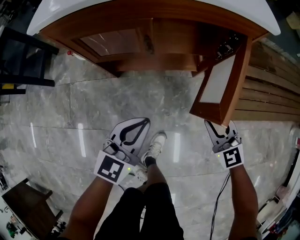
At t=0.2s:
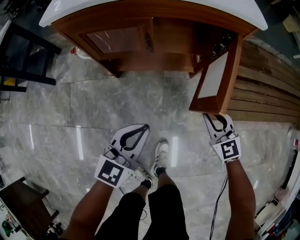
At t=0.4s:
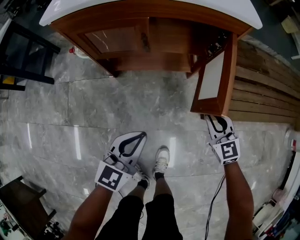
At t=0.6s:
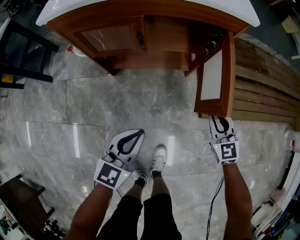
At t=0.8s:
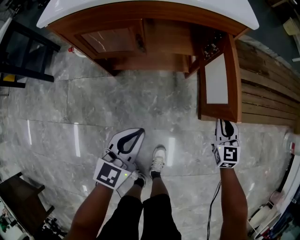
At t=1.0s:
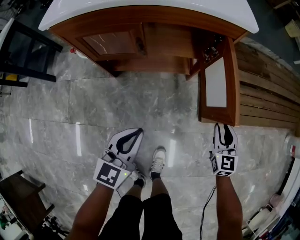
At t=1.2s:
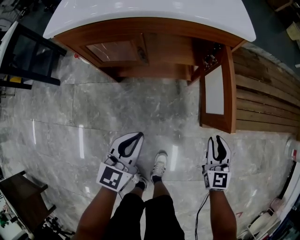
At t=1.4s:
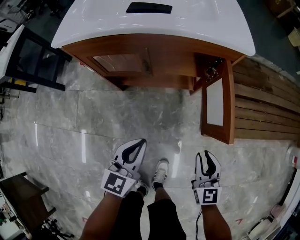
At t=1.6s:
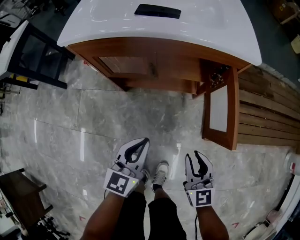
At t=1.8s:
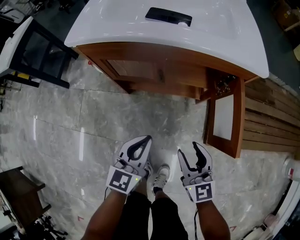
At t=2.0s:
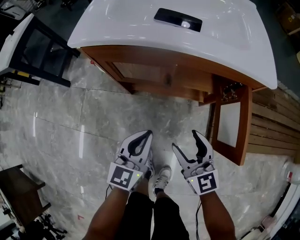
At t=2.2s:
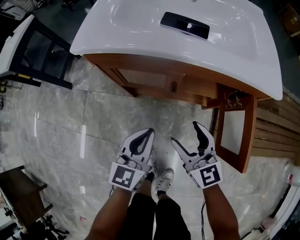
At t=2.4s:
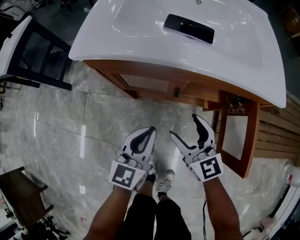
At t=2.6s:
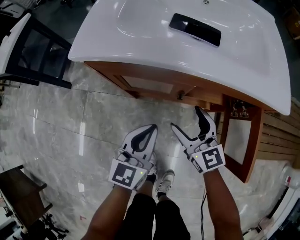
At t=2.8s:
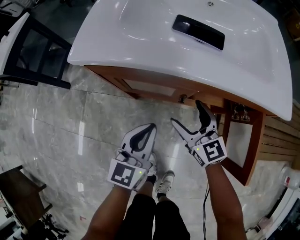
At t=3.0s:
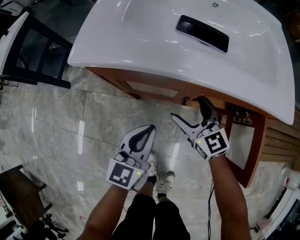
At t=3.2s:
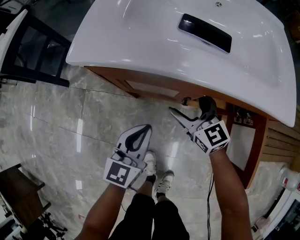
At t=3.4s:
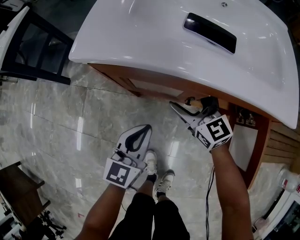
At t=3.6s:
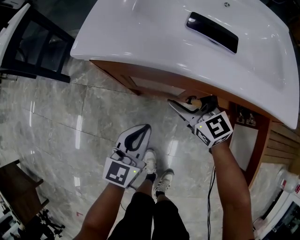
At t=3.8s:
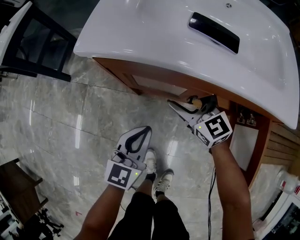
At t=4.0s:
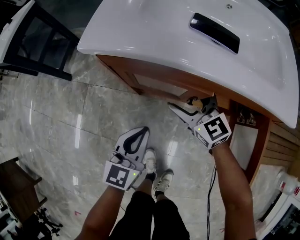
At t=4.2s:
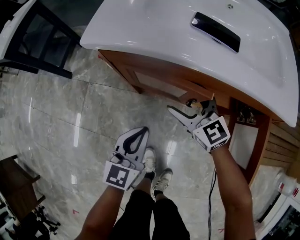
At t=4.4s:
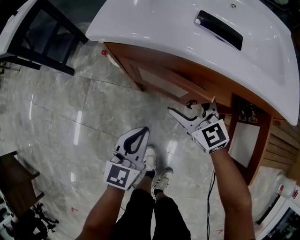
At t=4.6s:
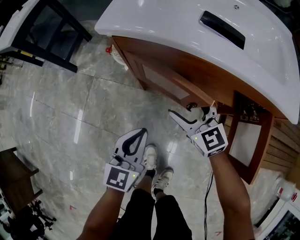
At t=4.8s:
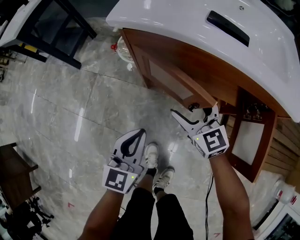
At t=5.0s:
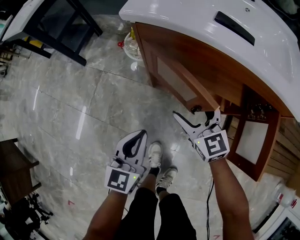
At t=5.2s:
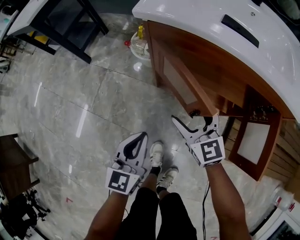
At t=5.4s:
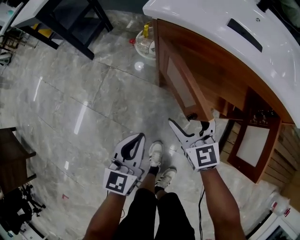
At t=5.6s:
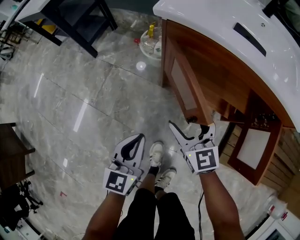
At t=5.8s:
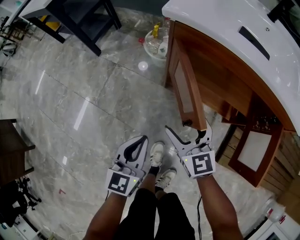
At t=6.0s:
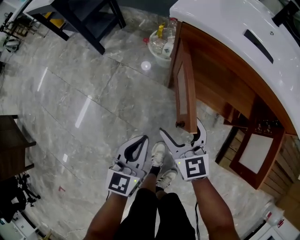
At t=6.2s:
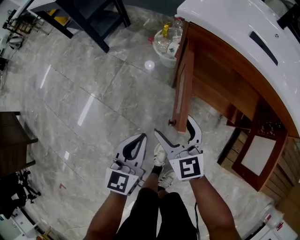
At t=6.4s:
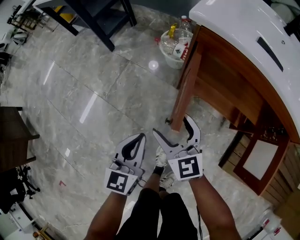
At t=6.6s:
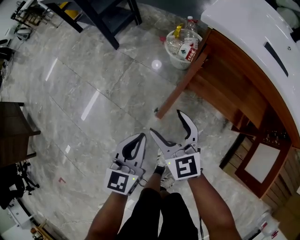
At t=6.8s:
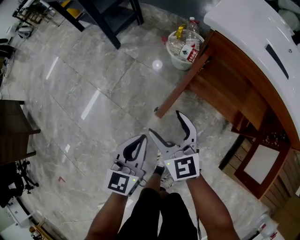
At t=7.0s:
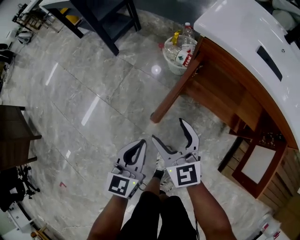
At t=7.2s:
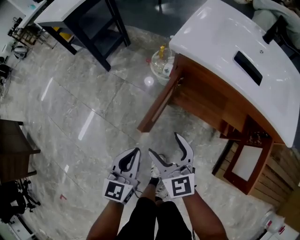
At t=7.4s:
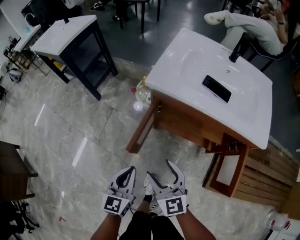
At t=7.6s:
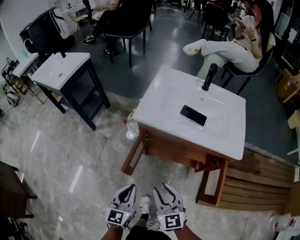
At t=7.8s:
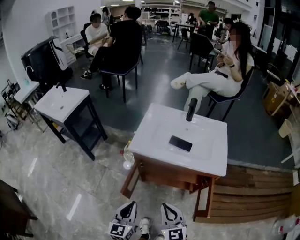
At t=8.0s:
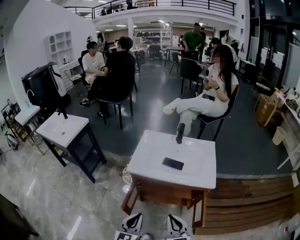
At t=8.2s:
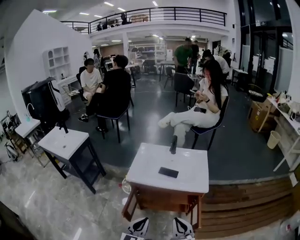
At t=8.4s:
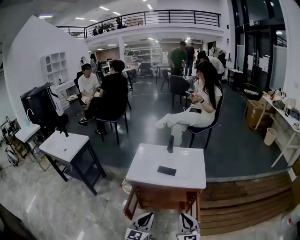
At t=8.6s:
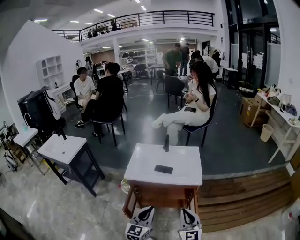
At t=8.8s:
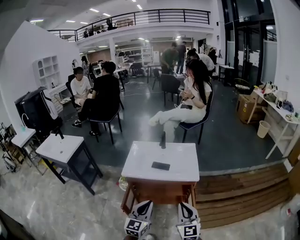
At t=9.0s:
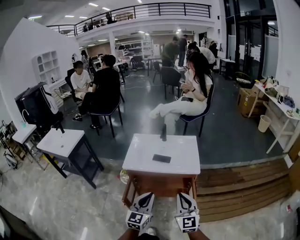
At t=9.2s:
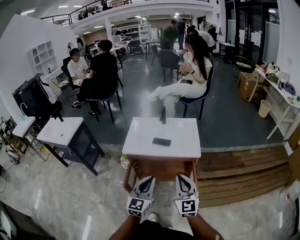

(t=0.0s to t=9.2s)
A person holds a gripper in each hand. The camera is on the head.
t=0.0s - t=1.6s: The left gripper moves about 10 cm backward and comes back, while the right gripper shifts some 10 cm upward and backward, goes to the right and returns, about 15 cm each way, and changes its angle by roughly 30 degrees.
t=1.6s - t=3.0s: The right gripper is displaced forward and to the left by about 35 cm, turns by roughly 20 degrees, and opens its fingers; the left gripper travels forward and to the left by roughly 20 cm.
t=3.0s - t=4.6s: The right gripper shifts some 5 cm to the left; the left gripper travels to the left and backward by roughly 10 cm.
t=4.6s - t=6.2s: The grippers both shift to the left and backward by some 20 cm.
t=6.2s - t=7.6s: The right gripper shifts about 20 cm upward and to the right, and closes up; the left gripper moves upward, approximately 15 cm.
t=7.6s - t=9.2s: The grippers both shift upward and to the right by approximately 30 cm. The right gripper swivels approximately 30 degrees. Meanwhile the left gripper turns by about 30 degrees.

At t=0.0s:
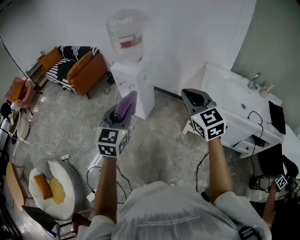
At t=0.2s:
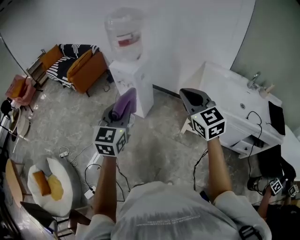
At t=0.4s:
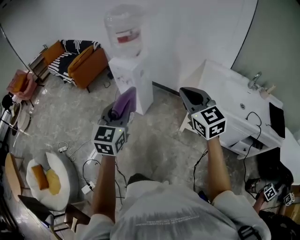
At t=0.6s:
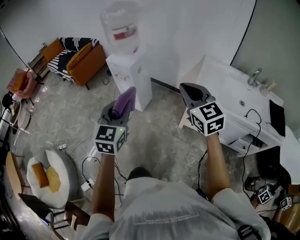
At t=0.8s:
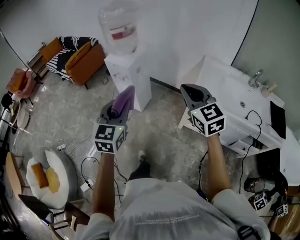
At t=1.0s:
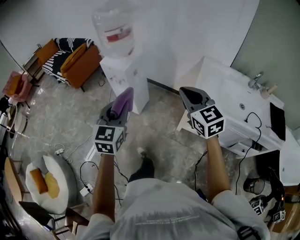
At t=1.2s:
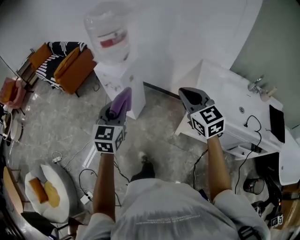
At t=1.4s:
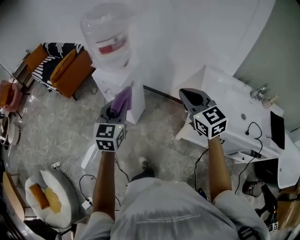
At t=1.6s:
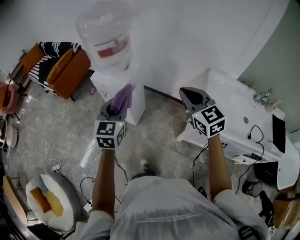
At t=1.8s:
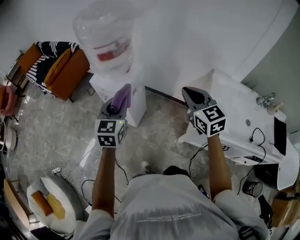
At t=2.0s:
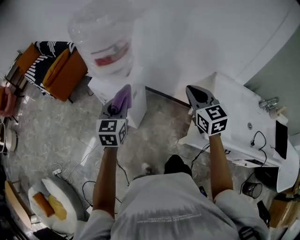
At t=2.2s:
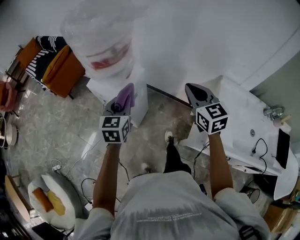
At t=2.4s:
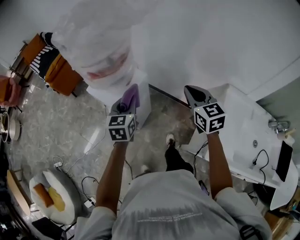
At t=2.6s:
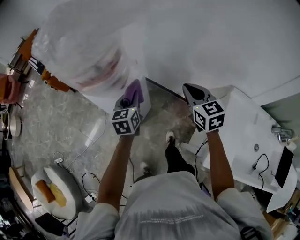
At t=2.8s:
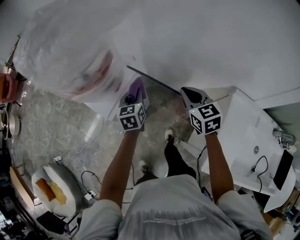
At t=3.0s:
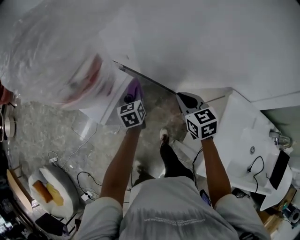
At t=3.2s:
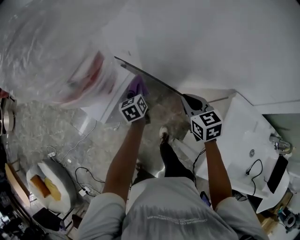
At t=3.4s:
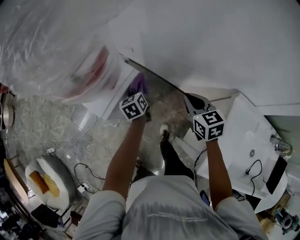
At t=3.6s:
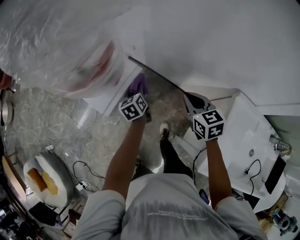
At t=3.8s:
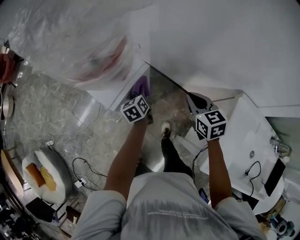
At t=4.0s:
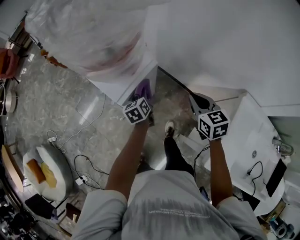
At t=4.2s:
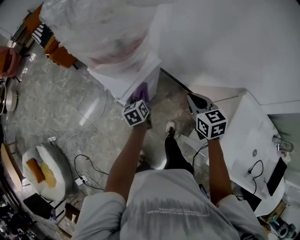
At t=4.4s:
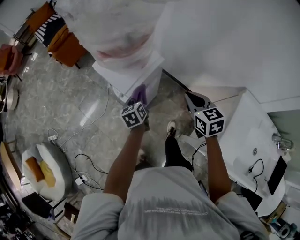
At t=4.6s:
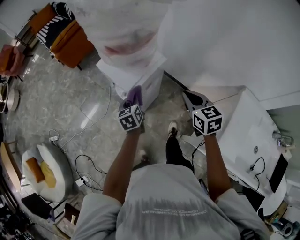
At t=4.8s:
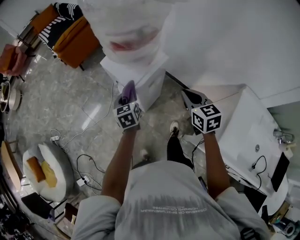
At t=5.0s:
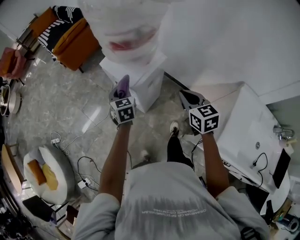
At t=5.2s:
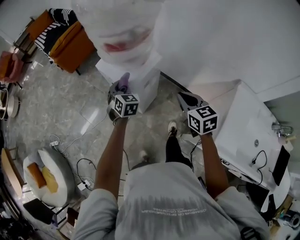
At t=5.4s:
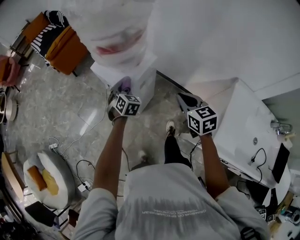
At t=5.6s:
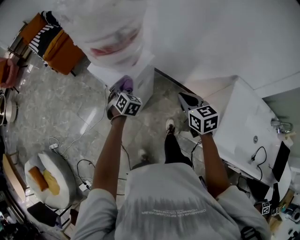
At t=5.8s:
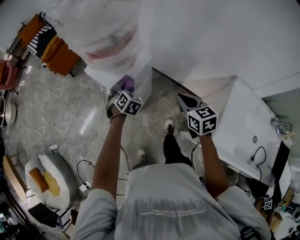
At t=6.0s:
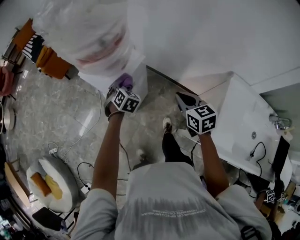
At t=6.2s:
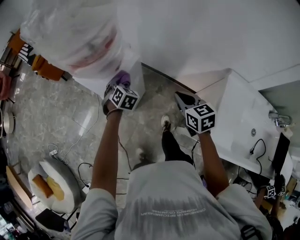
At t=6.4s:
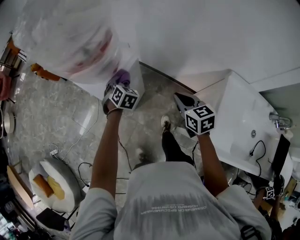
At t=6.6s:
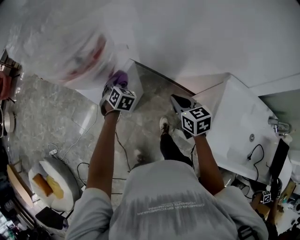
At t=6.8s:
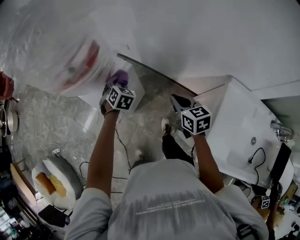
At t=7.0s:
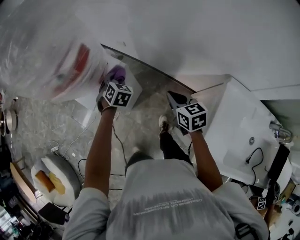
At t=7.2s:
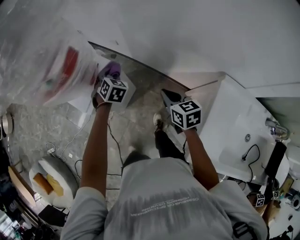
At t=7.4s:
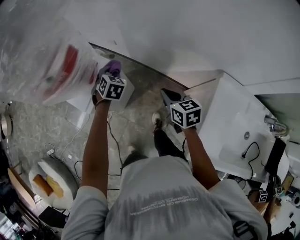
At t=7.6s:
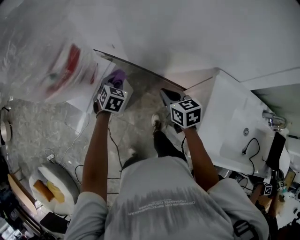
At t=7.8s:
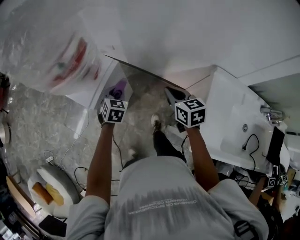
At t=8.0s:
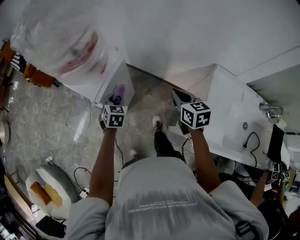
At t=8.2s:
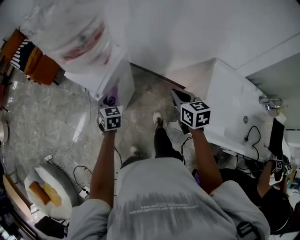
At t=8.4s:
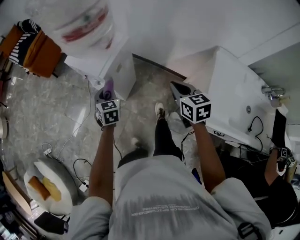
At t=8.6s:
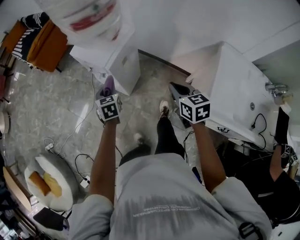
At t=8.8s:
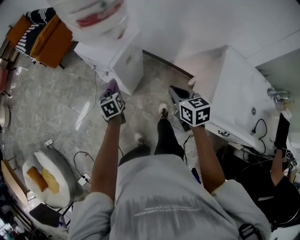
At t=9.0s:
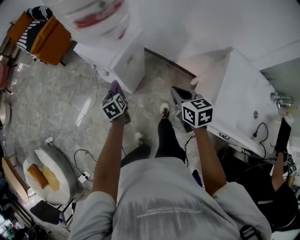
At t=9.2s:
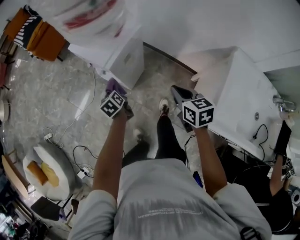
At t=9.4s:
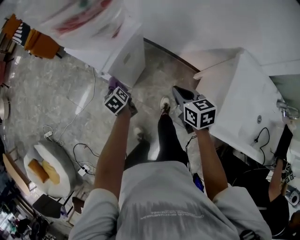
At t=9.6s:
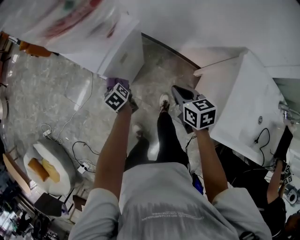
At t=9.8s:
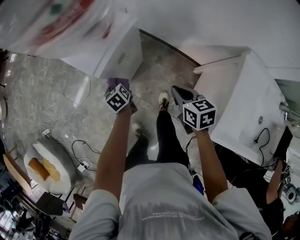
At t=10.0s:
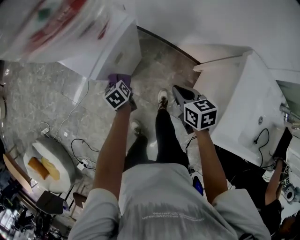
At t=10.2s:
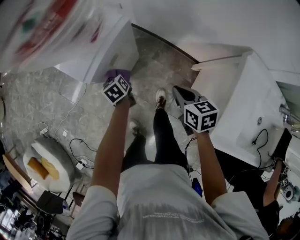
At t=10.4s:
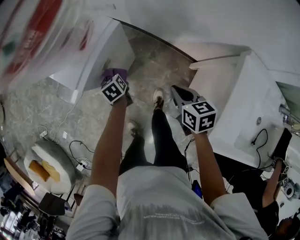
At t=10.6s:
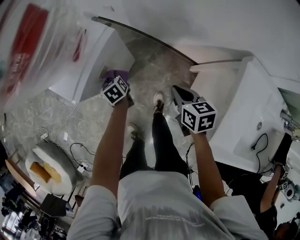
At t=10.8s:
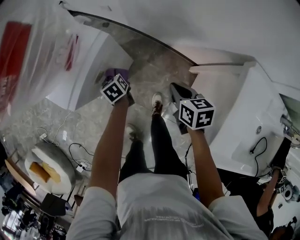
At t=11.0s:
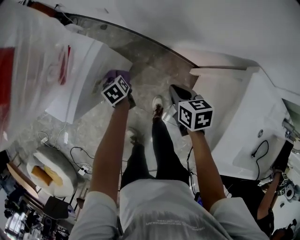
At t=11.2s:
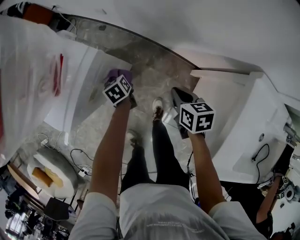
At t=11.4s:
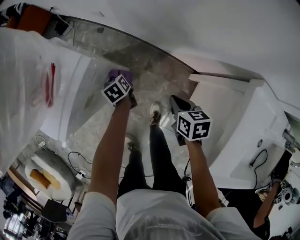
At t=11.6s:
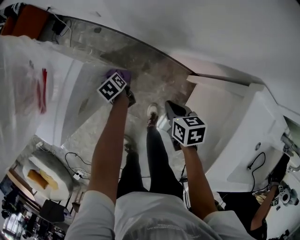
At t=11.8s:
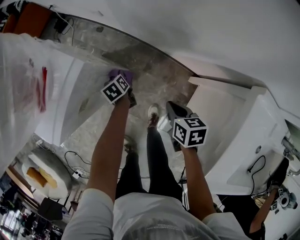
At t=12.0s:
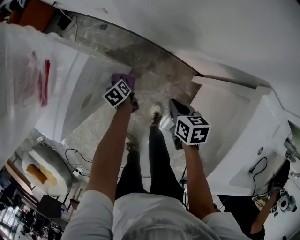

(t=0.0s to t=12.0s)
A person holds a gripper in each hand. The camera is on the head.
t=0.0s - t=1.6s: Both grippers move forward, some 30 cm.
t=1.6s - t=3.0s: Both grippers travel together forward and downward, some 40 cm. The left gripper turns by roughly 40 degrees. The right gripper turns by some 20 degrees.
t=3.0s - t=4.4s: The grippers both shift to the left and backward by about 15 cm.
t=4.4s - t=6.0s: The left gripper travels to the left and back again, about 10 cm each way, and twists approximately 60 degrees clockwise, seen from behind; the right gripper reaches about 5 cm to the left, then returns.
t=6.0s - t=7.6s: Both grippers move to the right, some 10 cm.
t=7.6s - t=9.0s: The right gripper travels backward and to the left by about 20 cm. Meanwhile the left gripper goes roughly 30 cm to the left and backward, and rolls counterclockwise, seen from behind, by about 60 degrees.
t=9.0s - t=10.4s: The left gripper travels to the right, downward and forward by some 20 cm, while the right gripper goes some 15 cm downward, to the right and forward.
t=10.4s - t=12.0s: The right gripper travels downward, to the right and forward by roughly 20 cm, while the left gripper heads downward and to the right, covering roughly 20 cm.

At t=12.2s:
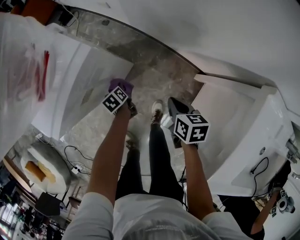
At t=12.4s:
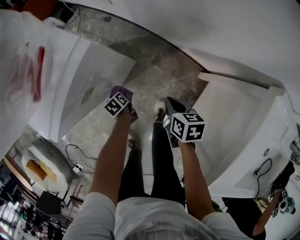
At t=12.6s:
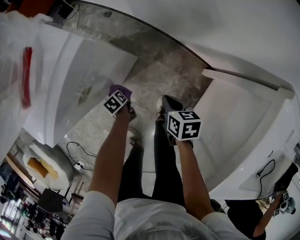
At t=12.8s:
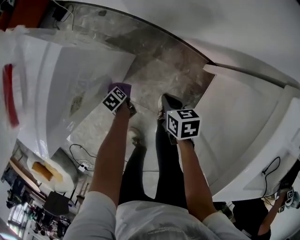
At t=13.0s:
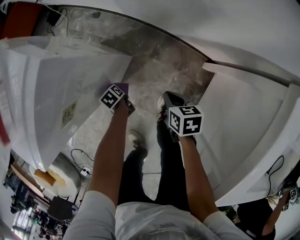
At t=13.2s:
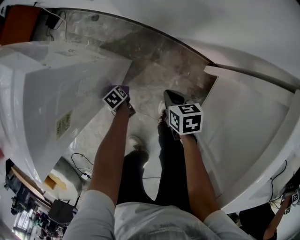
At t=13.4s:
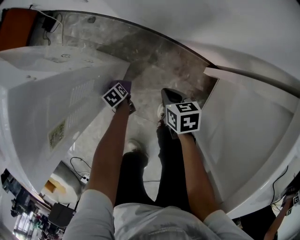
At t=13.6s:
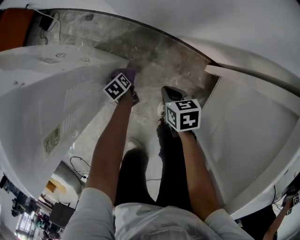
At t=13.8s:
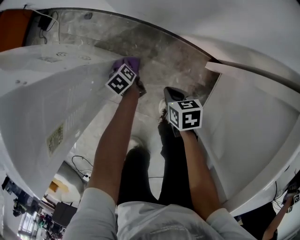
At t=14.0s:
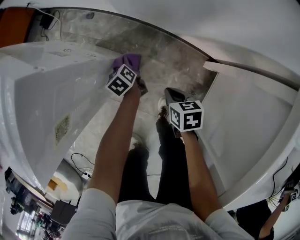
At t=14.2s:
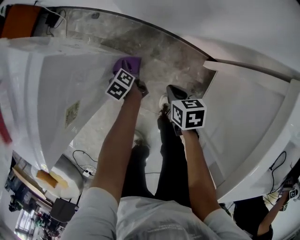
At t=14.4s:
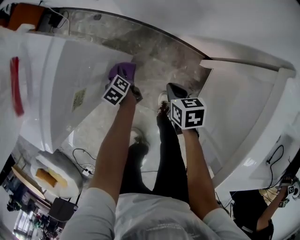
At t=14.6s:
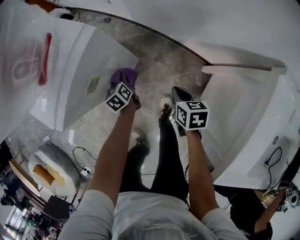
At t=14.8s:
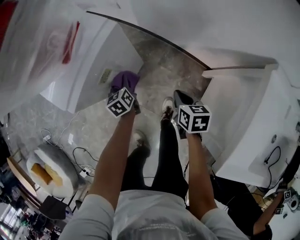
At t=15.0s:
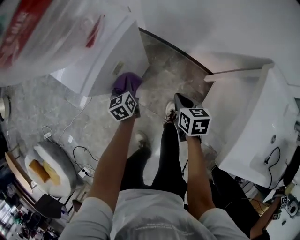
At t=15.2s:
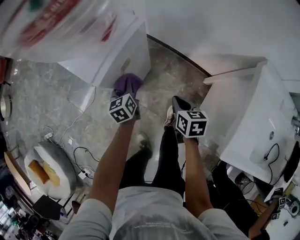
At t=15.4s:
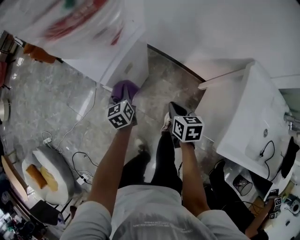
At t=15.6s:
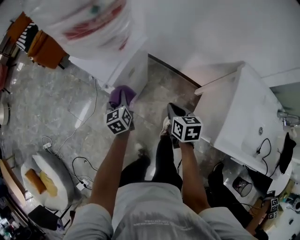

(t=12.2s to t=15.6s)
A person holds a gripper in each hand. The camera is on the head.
t=12.2s - t=13.8s: The left gripper moves downward, to the right and forward, roughly 20 cm. The right gripper heads downward, covering approximately 20 cm.
t=13.8s - t=15.6s: The left gripper shifts roughly 50 cm upward, to the left and backward, and rotates roughly 30 degrees, while the right gripper travels upward by approximately 40 cm.
